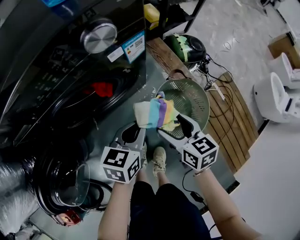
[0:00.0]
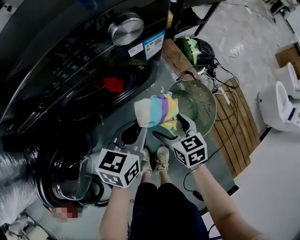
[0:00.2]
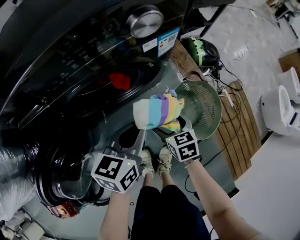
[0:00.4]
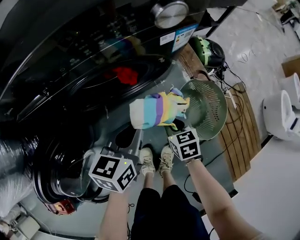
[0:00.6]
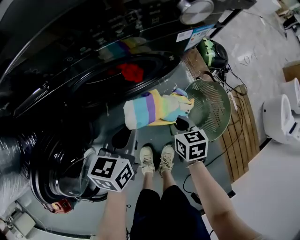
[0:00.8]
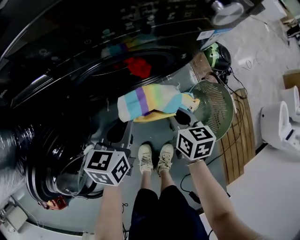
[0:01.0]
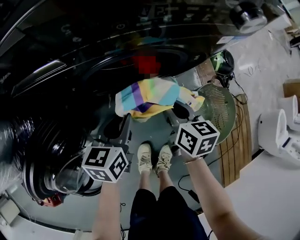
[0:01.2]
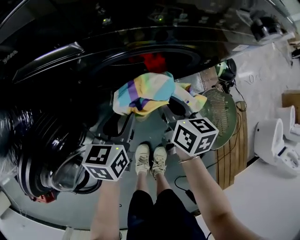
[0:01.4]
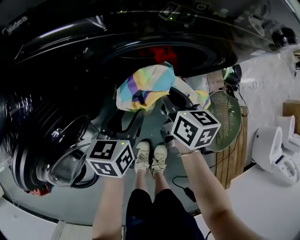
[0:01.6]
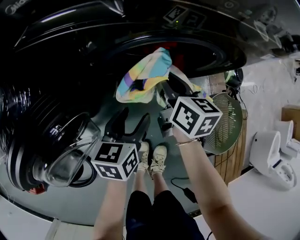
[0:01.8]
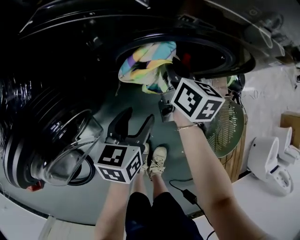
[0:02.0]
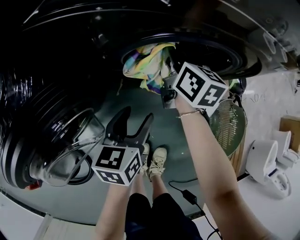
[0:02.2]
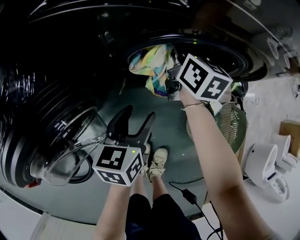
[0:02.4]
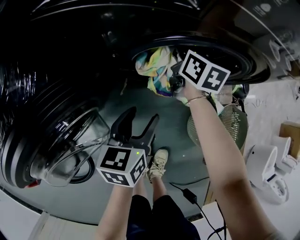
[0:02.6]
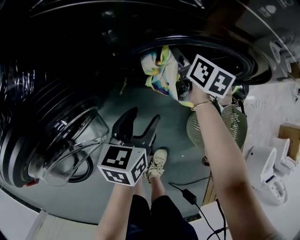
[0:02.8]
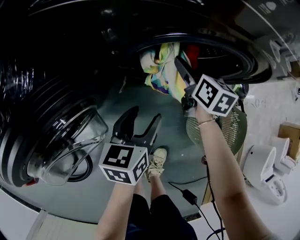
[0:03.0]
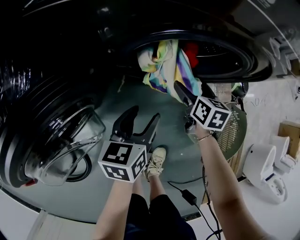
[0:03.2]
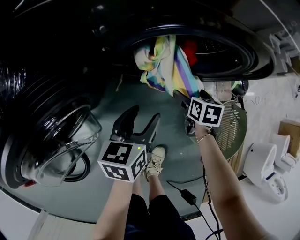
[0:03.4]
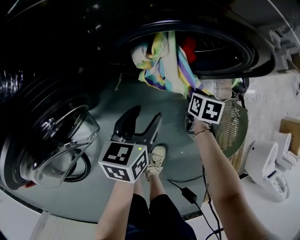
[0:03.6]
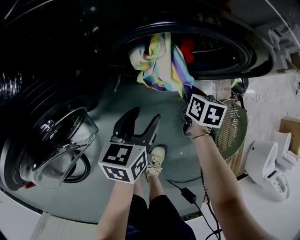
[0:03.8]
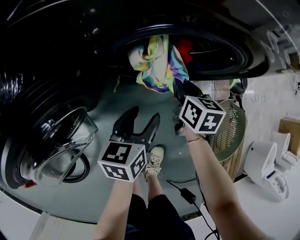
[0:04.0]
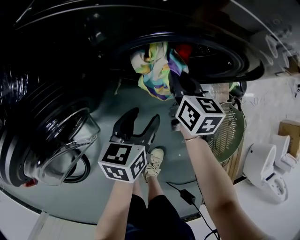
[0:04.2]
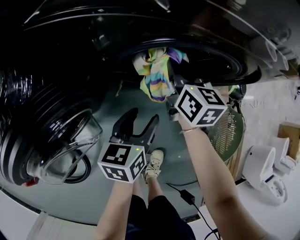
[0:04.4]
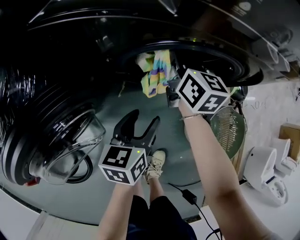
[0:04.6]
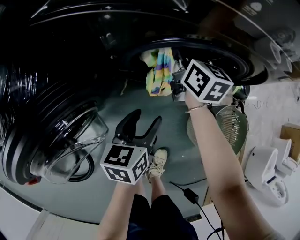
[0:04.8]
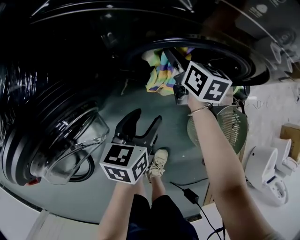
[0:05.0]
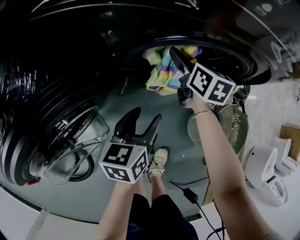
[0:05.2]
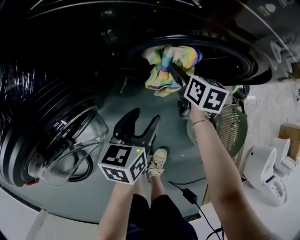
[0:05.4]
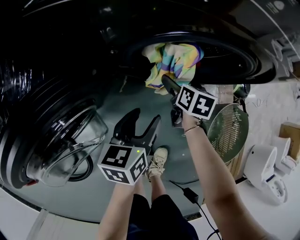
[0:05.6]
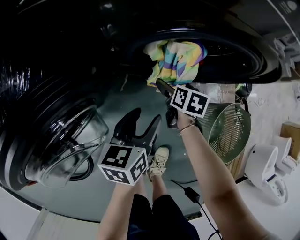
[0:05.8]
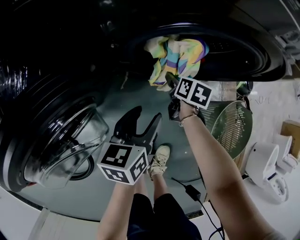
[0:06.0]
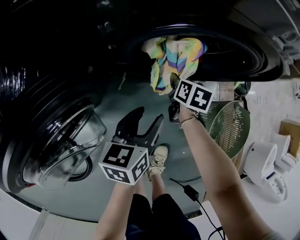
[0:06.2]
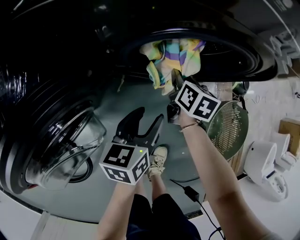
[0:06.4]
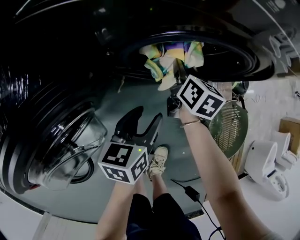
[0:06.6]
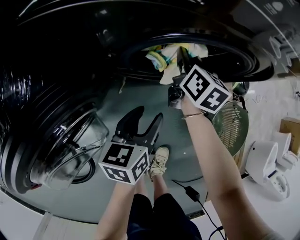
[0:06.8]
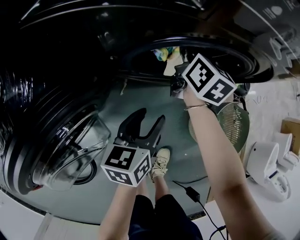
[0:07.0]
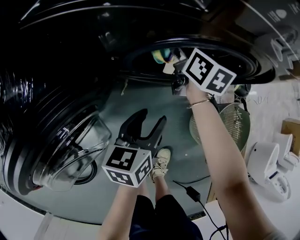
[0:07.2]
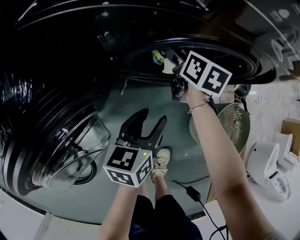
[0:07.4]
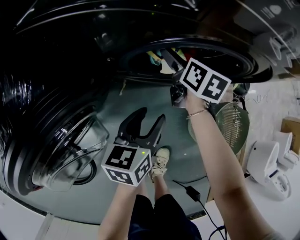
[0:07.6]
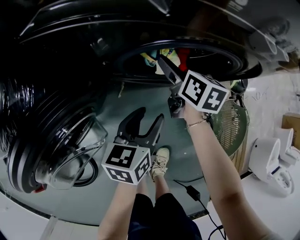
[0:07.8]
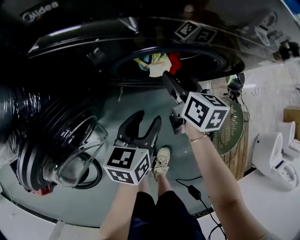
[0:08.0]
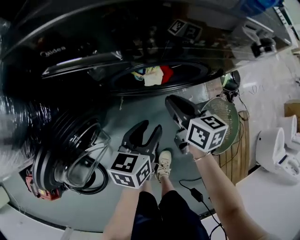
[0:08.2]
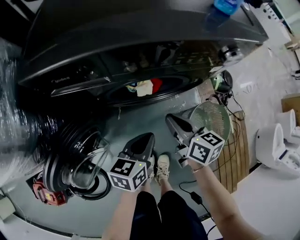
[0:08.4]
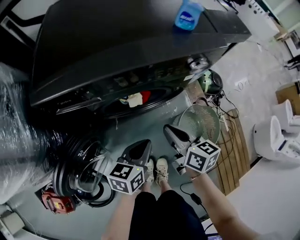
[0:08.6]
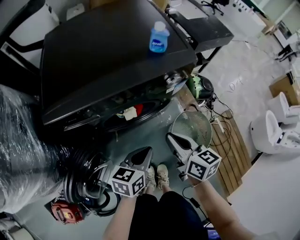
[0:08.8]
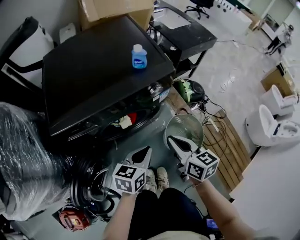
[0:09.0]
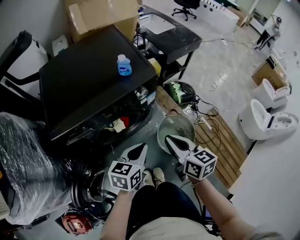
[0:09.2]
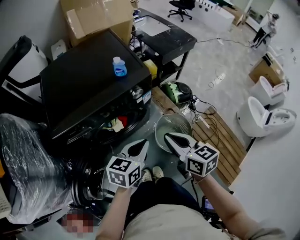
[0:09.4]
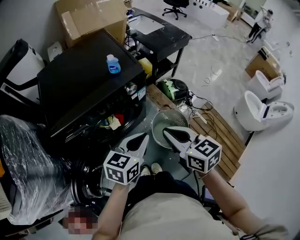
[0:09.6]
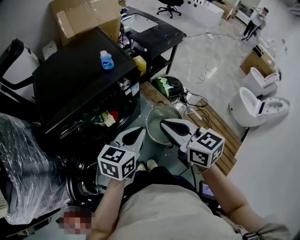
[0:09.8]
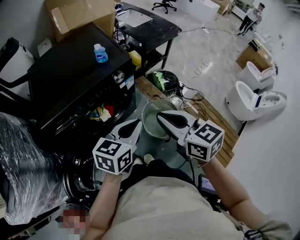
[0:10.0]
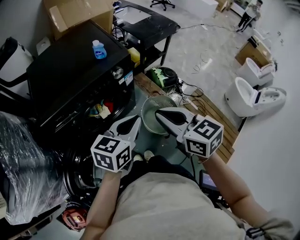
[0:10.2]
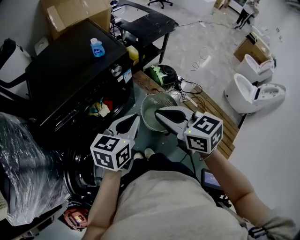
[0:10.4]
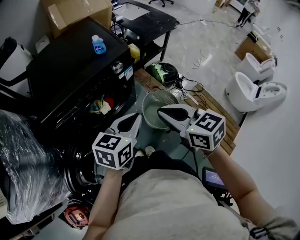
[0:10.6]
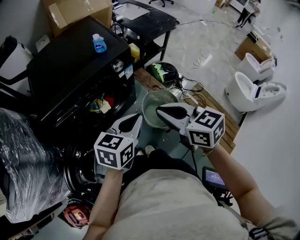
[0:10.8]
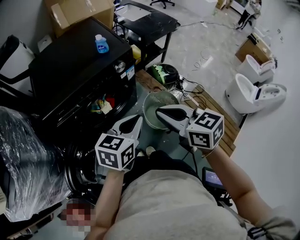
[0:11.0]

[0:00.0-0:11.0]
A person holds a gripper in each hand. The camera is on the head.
0.0 to 1.6 s: The left gripper goes approximately 25 cm to the left, turns by roughly 30 degrees, and opens its fingers; the right gripper heads to the left and forward, covering roughly 25 cm, and closes its fingers.
1.6 to 3.2 s: The right gripper goes roughly 10 cm downward, reaches some 15 cm forward, then returns, and opens its fingers.
3.2 to 4.8 s: The right gripper goes approximately 20 cm upward, forward and to the left, swivels approximately 30 degrees, and closes up.
4.8 to 6.2 s: The right gripper moves downward and backward, approximately 20 cm, tilts its fingers some 30 degrees downward, and opens, then closes once more.
6.2 to 7.8 s: The right gripper heads upward, covering approximately 15 cm, changes its angle by roughly 20 degrees, and opens its fingers.
7.8 to 9.4 s: The left gripper goes about 40 cm upward and to the right, turns by roughly 40 degrees, and closes up. Meanwhile the right gripper shifts roughly 50 cm upward, to the right and backward, and closes.
9.4 to 11.0 s: The right gripper goes some 10 cm backward and upward, while the left gripper travels backward by roughly 5 cm.

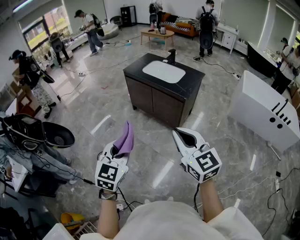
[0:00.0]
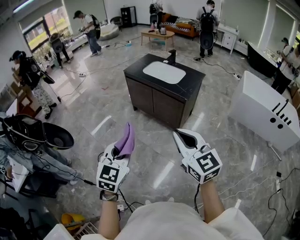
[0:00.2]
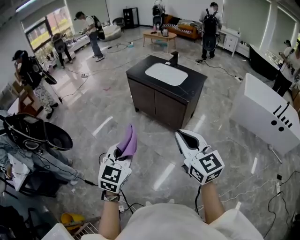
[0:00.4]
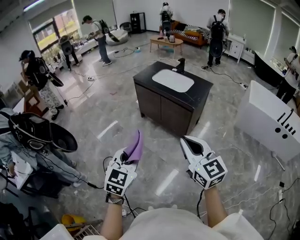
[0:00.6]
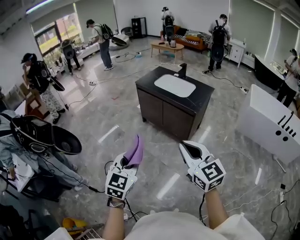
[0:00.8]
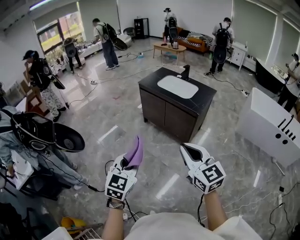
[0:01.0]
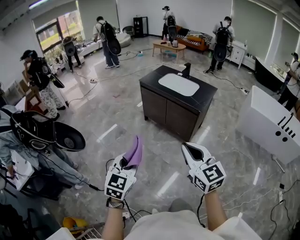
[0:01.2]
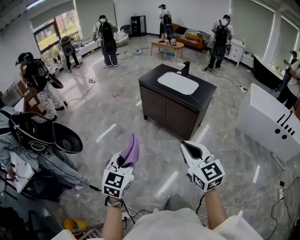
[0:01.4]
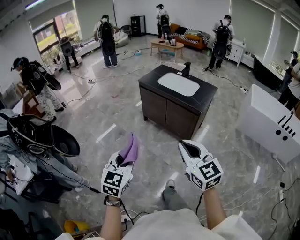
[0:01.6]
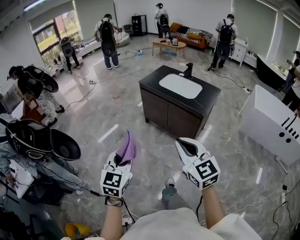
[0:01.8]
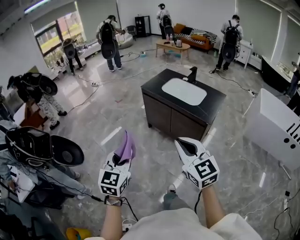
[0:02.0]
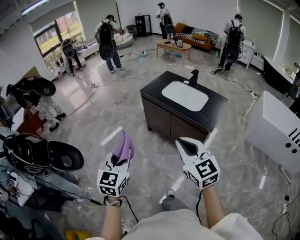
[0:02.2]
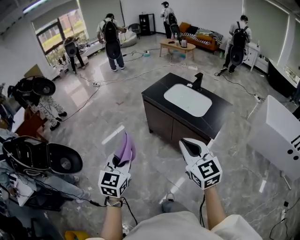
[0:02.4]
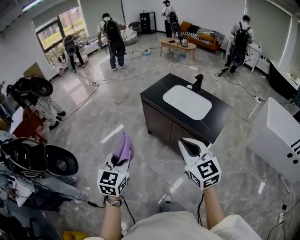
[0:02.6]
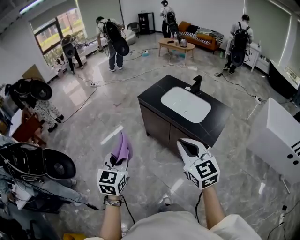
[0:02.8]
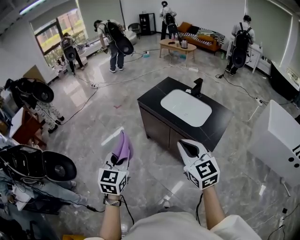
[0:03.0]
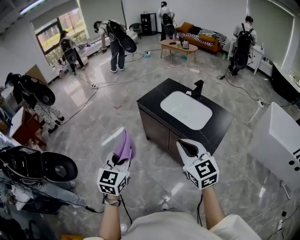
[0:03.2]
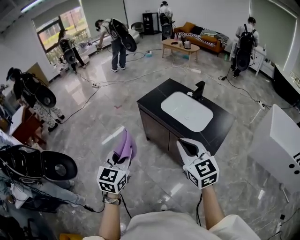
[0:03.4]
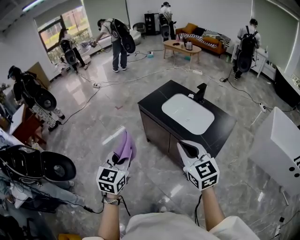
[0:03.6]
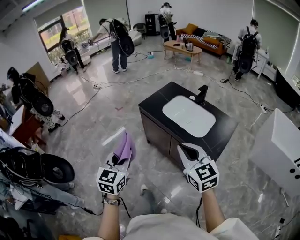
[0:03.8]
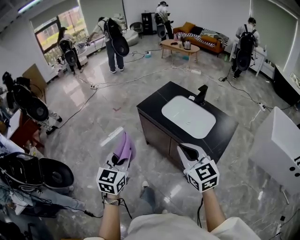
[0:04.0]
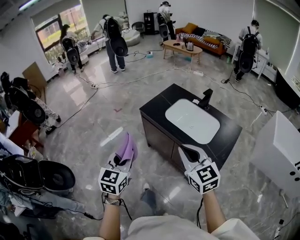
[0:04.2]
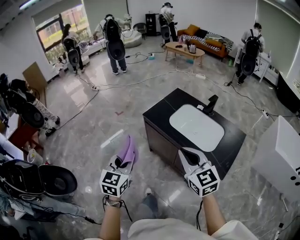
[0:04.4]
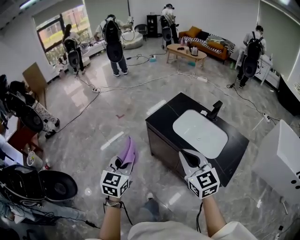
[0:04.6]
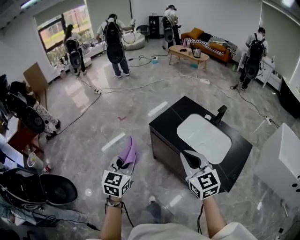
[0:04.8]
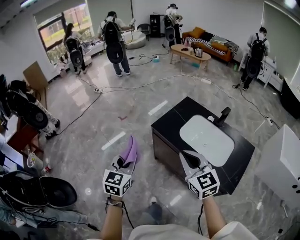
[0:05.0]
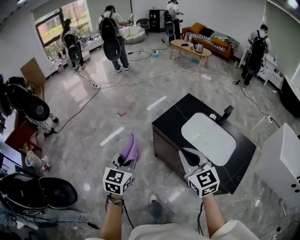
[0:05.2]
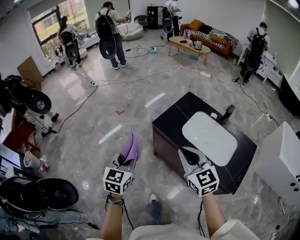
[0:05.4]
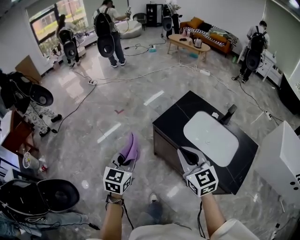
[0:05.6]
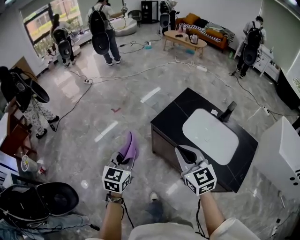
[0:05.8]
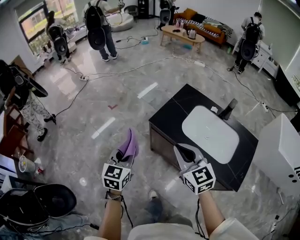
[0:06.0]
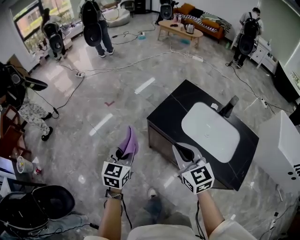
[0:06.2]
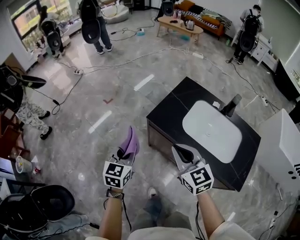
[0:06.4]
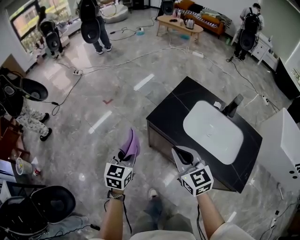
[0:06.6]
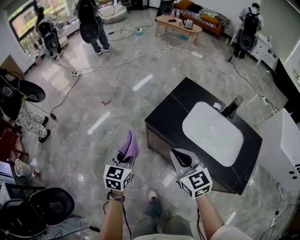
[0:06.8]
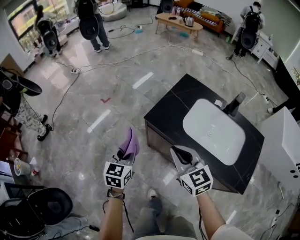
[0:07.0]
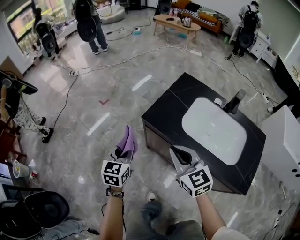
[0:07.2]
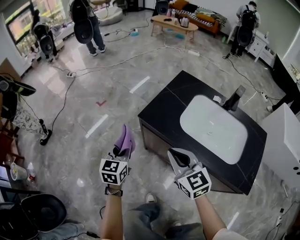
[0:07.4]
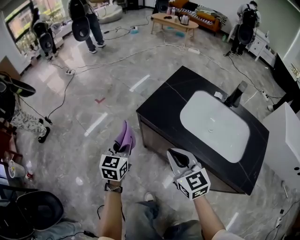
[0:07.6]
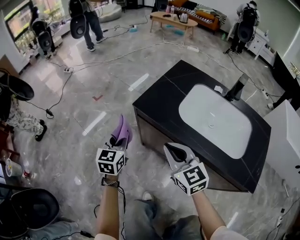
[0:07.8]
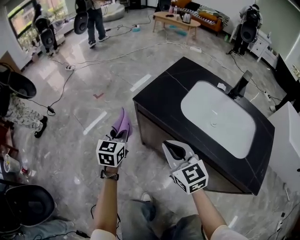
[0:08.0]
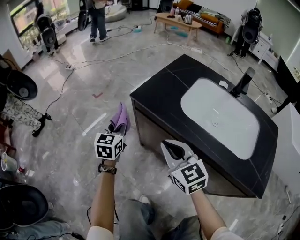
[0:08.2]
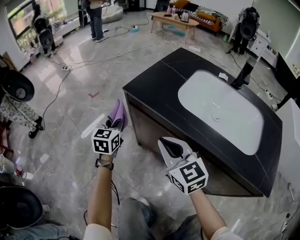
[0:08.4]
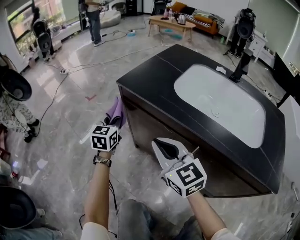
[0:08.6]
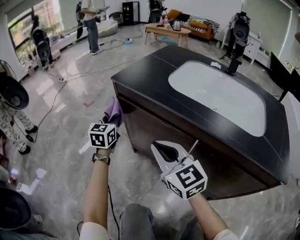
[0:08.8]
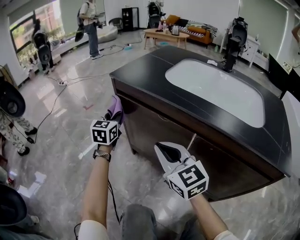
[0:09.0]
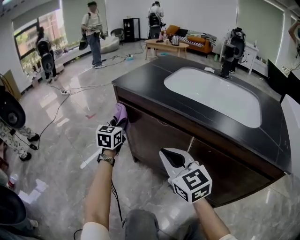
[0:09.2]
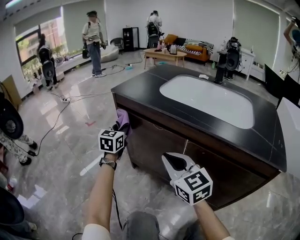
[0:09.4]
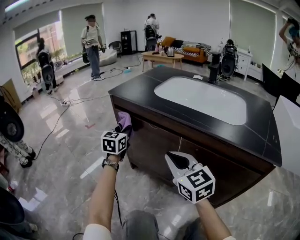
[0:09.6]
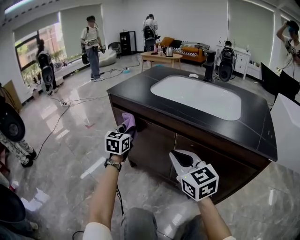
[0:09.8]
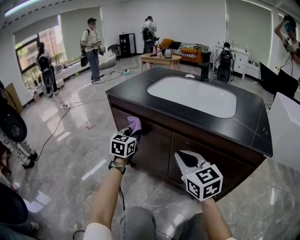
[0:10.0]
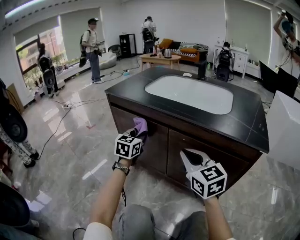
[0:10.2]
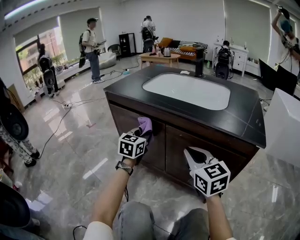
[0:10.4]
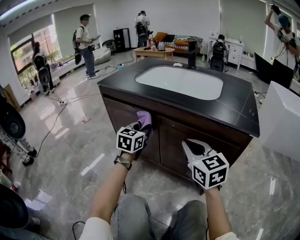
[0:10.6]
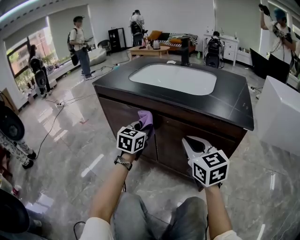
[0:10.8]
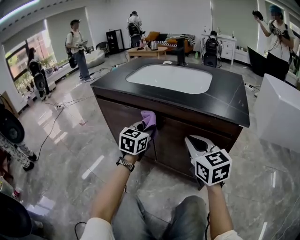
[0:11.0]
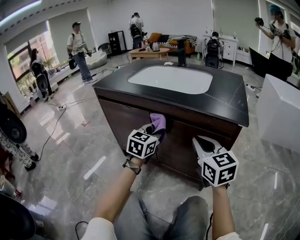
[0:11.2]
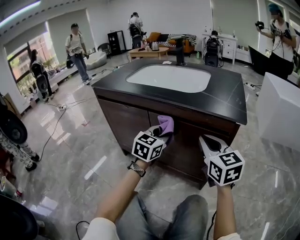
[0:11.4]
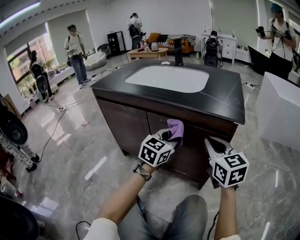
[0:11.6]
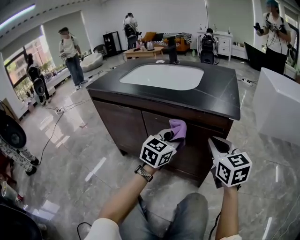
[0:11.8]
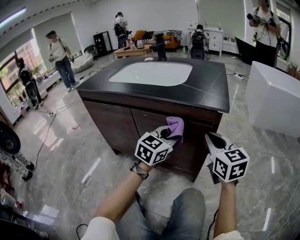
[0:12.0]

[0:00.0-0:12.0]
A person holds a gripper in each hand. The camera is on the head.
0.0 to 1.6 s: Both grippers travel together to the left, roughly 10 cm.
1.6 to 3.0 s: Both grippers travel together forward, roughly 40 cm.
3.0 to 4.4 s: Both grippers move forward, some 20 cm.
4.4 to 6.0 s: The left gripper travels forward by approximately 25 cm; the right gripper moves forward and to the left, approximately 25 cm.
6.0 to 7.6 s: The left gripper shifts approximately 25 cm downward and forward. Meanwhile the right gripper is displaced downward by approximately 20 cm.
7.6 to 9.0 s: Both grippers move downward, about 25 cm.
9.0 to 10.4 s: Both grippers travel together to the right and backward, about 25 cm.
10.4 to 12.0 s: Both grippers travel together to the right, approximately 25 cm. The left gripper changes its angle by about 30 degrees.

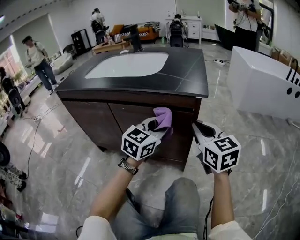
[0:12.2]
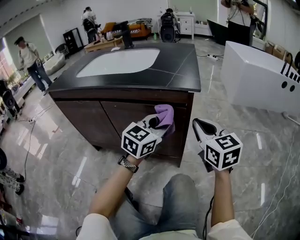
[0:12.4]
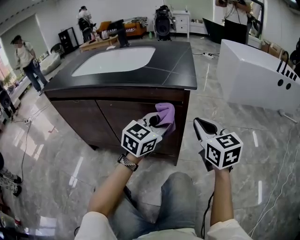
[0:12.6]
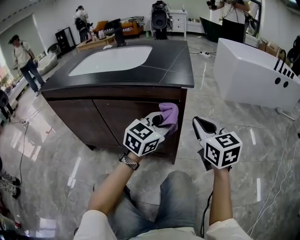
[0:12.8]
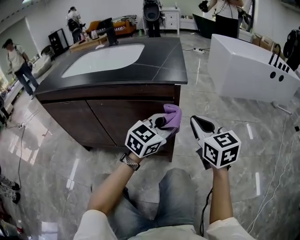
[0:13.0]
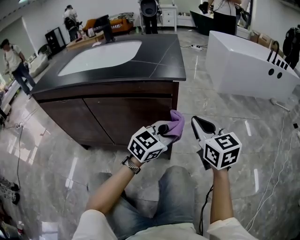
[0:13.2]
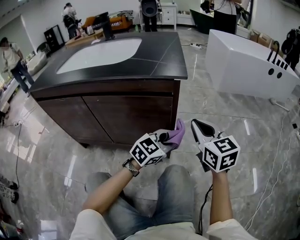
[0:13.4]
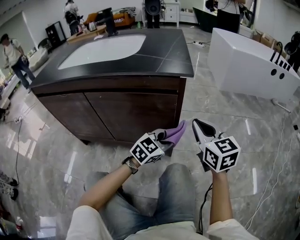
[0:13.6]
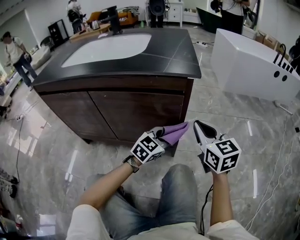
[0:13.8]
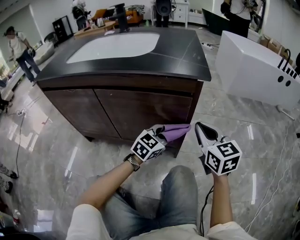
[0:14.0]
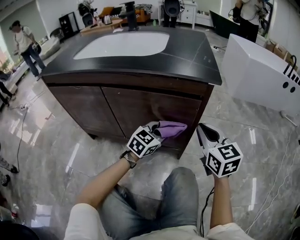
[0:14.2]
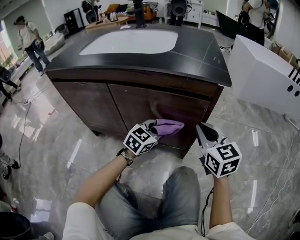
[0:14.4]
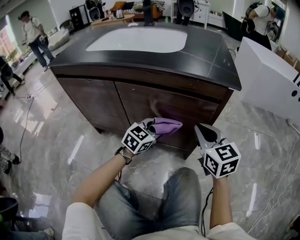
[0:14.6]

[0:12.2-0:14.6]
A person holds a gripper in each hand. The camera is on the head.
12.2 to 13.4 s: The left gripper moves to the right and downward, some 20 cm, and changes its angle by about 30 degrees. Meanwhile the right gripper shifts some 10 cm to the right.
13.4 to 14.6 s: The right gripper heads to the left, covering some 15 cm, while the left gripper heads to the left, covering some 20 cm, and changes its angle by roughly 20 degrees.
